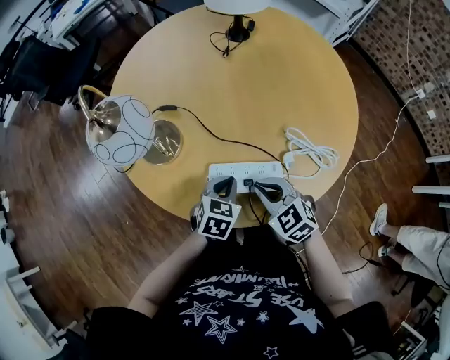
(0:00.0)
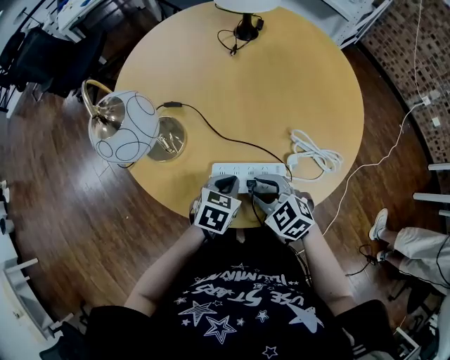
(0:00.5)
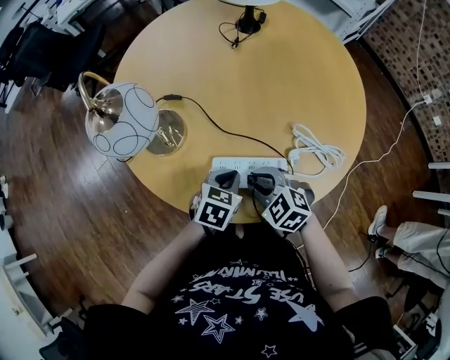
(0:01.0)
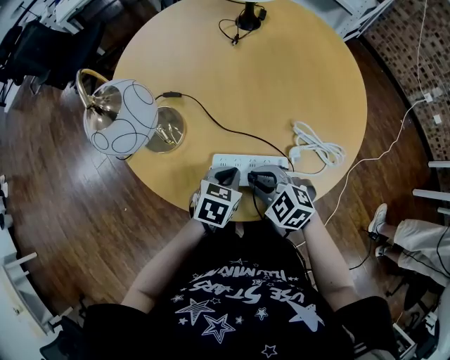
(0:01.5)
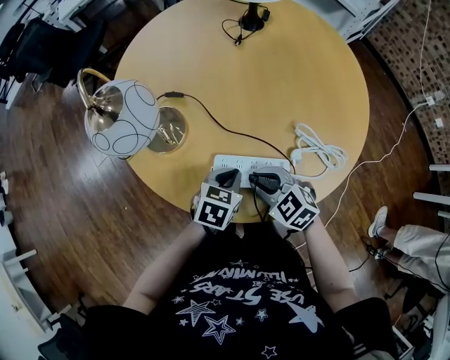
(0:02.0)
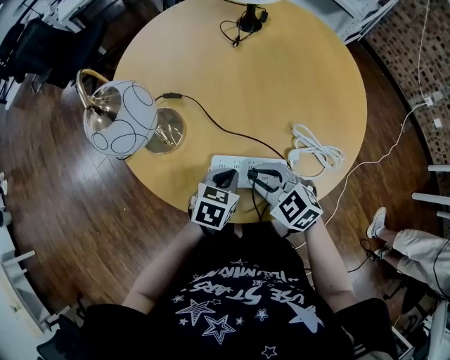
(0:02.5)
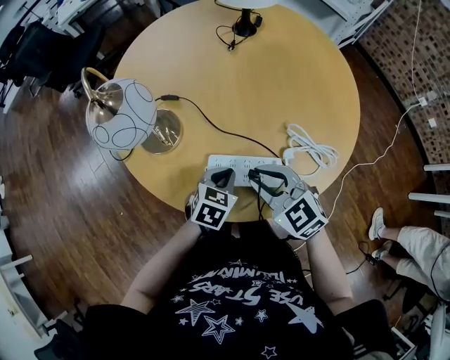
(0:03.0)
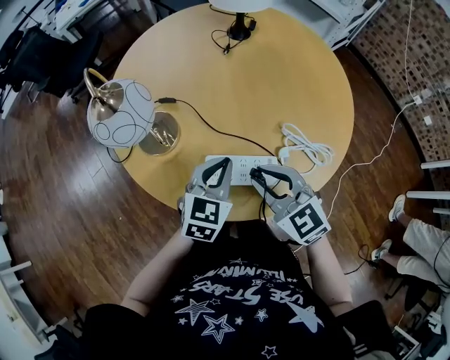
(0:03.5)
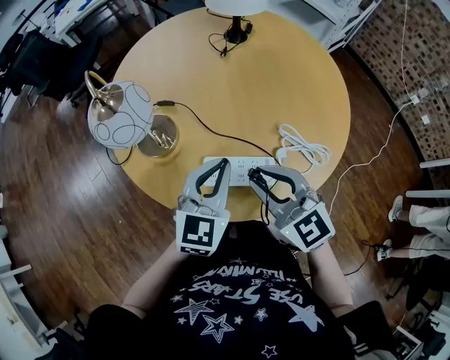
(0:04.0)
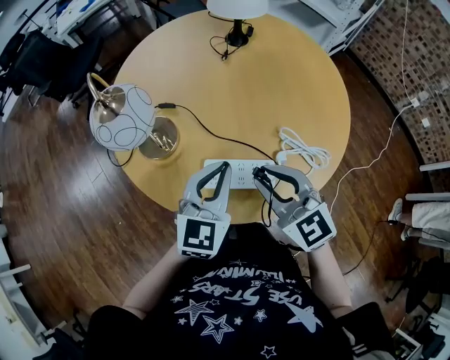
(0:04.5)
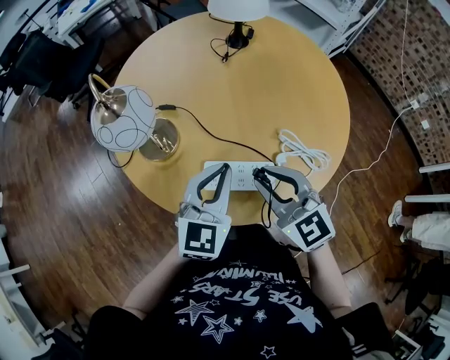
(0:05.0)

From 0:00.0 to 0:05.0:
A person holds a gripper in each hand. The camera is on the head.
From 0:00.0 to 0:02.5: The grippers stay close to where they were, moving slightly.
From 0:02.5 to 0:05.0: Both grippers move upward, approximately 15 cm. The right gripper changes its angle by about 20 degrees. Meanwhile the left gripper tilts its fingers some 30 degrees upward.

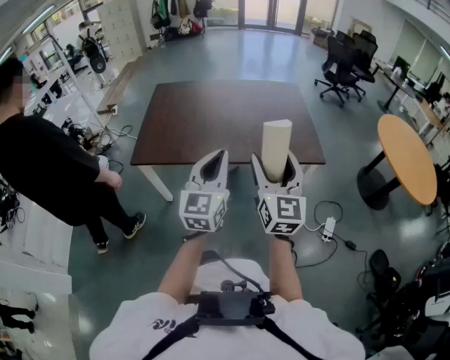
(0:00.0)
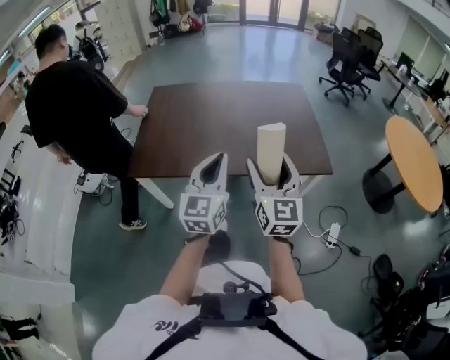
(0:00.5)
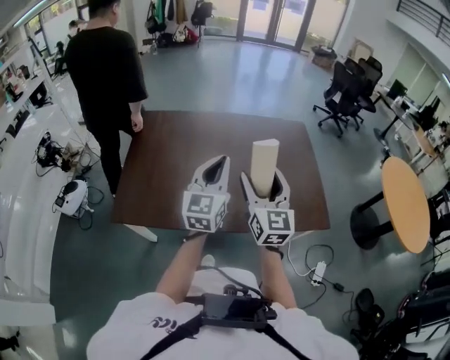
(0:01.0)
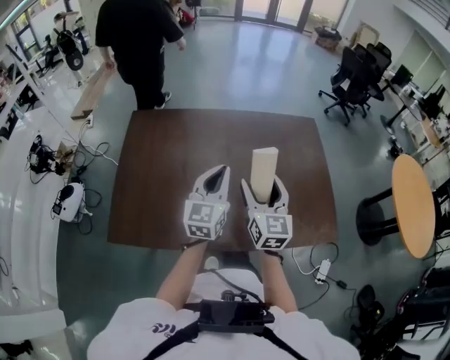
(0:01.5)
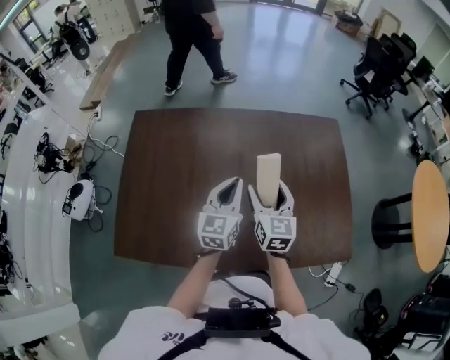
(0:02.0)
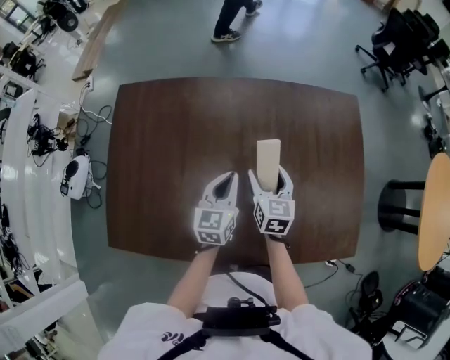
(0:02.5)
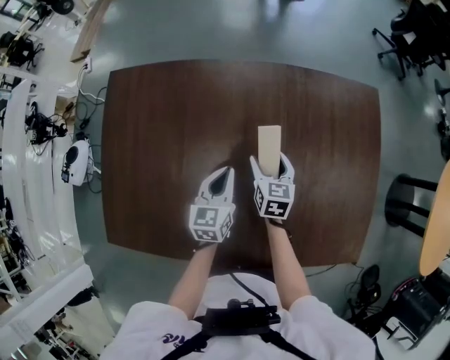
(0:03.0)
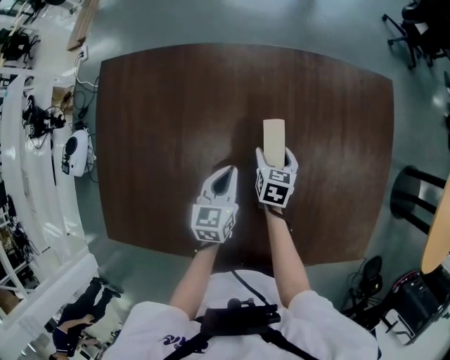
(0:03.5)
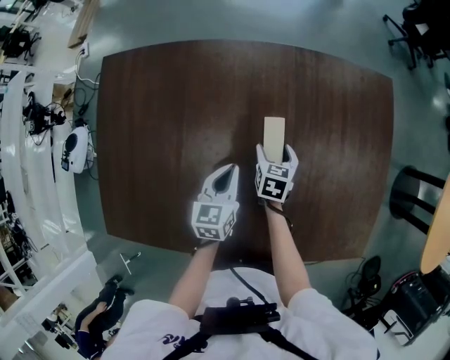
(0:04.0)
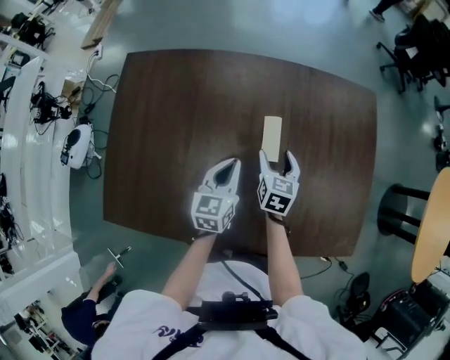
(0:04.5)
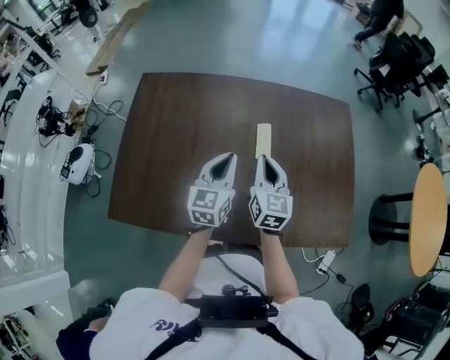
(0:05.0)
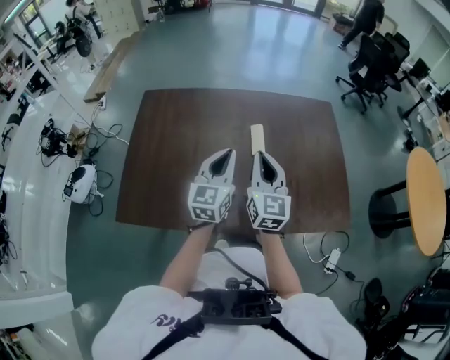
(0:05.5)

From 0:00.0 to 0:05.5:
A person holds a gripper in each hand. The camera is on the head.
From 0:00.0 to 0:02.0: Both grippers are carried forward, approximately 40 cm. The grippers both shift downward by about 20 cm. The right gripper swivels roughly 20 degrees.
From 0:02.0 to 0:03.5: The grippers both shift downward and forward by about 35 cm. The right gripper angles its fingers downward, by some 40 degrees; the left gripper rotates approximately 30 degrees.
From 0:03.5 to 0:05.5: Both grippers move upward and backward, about 50 cm. The right gripper angles its fingers upward, by approximately 50 degrees, and closes up. The left gripper swivels approximately 30 degrees.

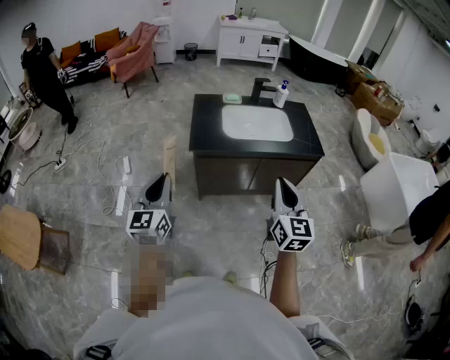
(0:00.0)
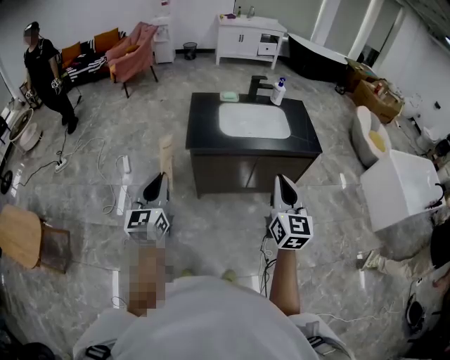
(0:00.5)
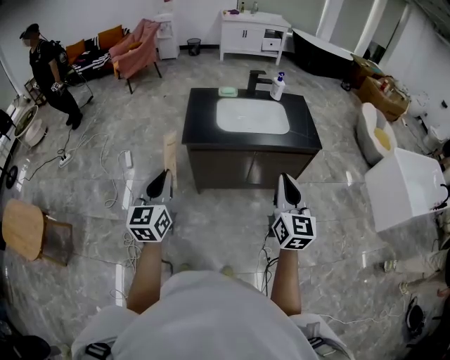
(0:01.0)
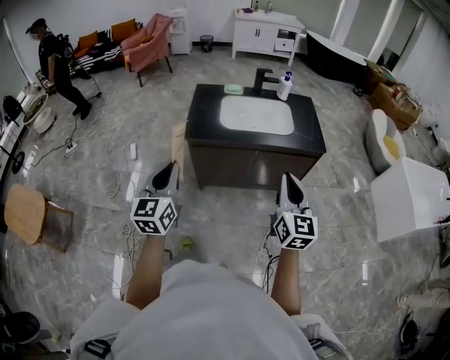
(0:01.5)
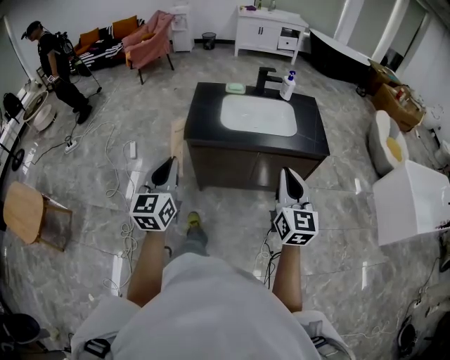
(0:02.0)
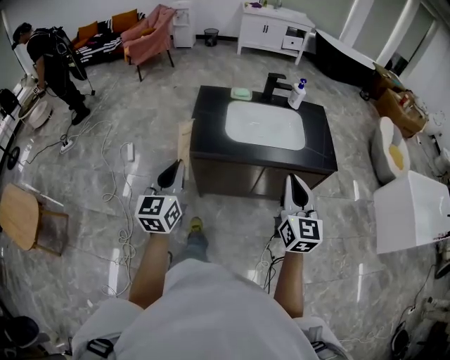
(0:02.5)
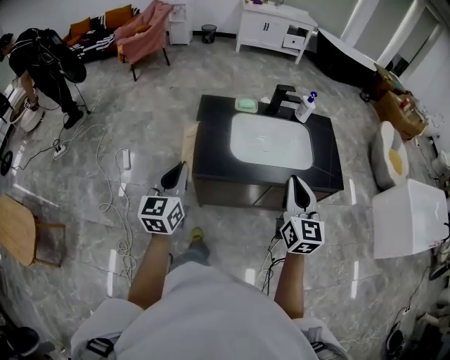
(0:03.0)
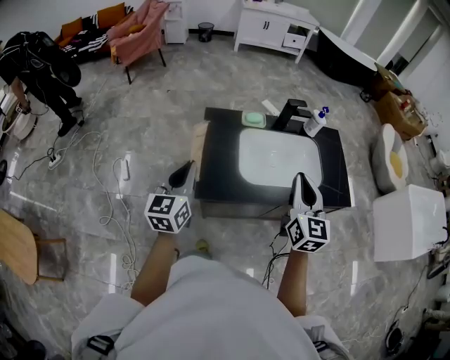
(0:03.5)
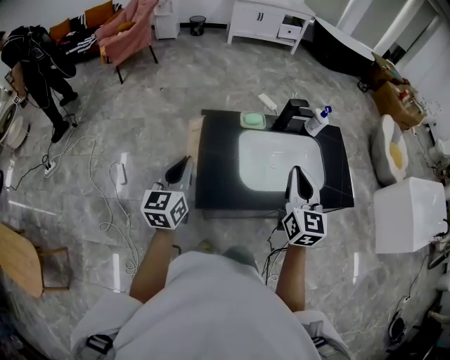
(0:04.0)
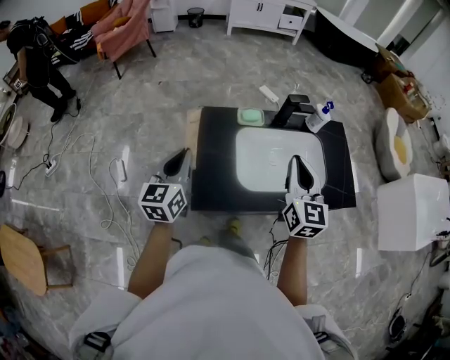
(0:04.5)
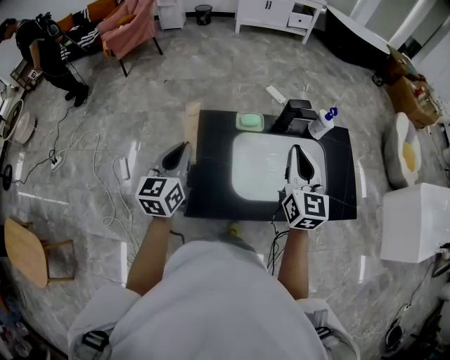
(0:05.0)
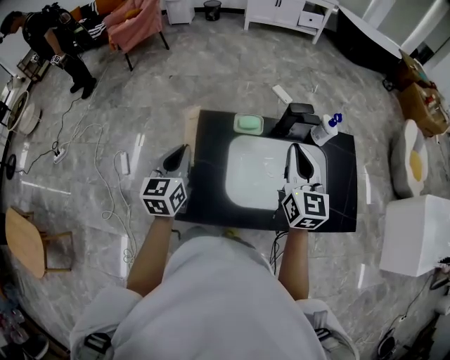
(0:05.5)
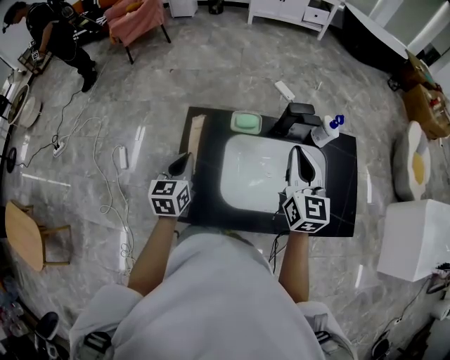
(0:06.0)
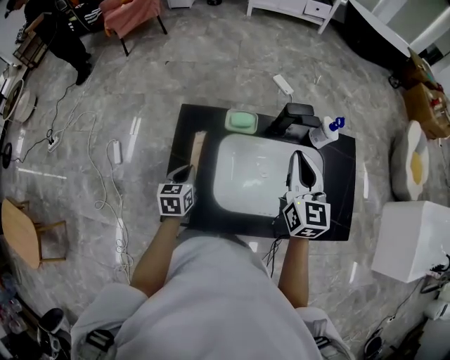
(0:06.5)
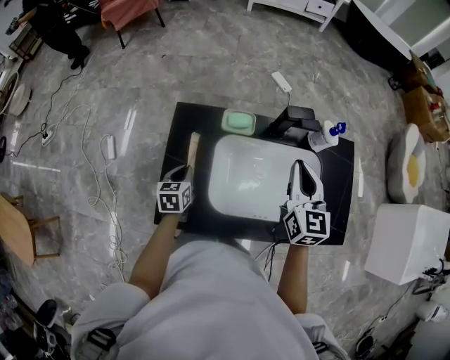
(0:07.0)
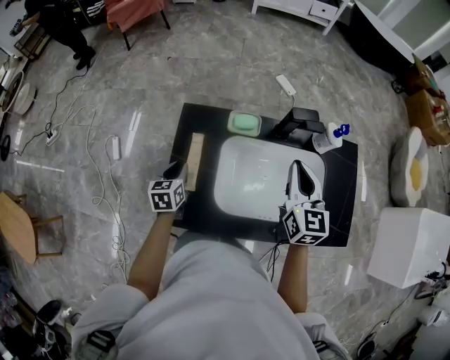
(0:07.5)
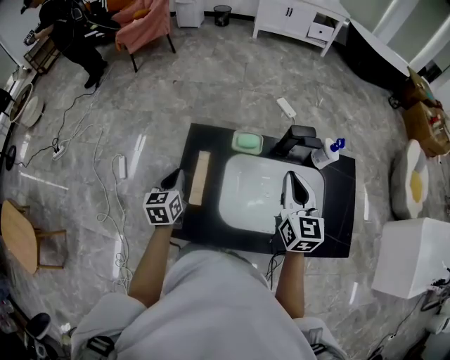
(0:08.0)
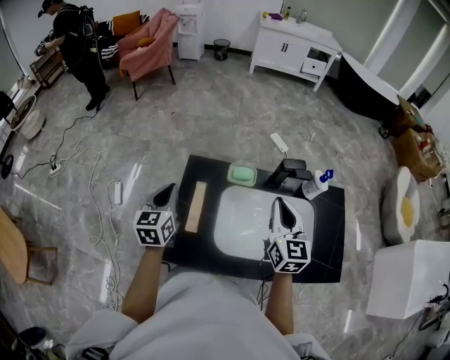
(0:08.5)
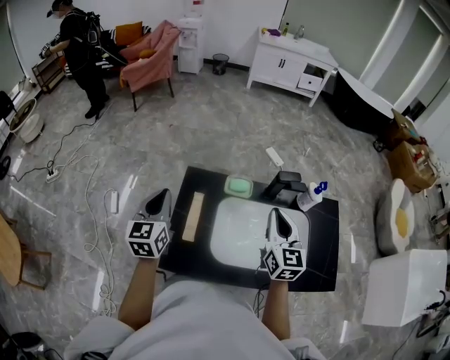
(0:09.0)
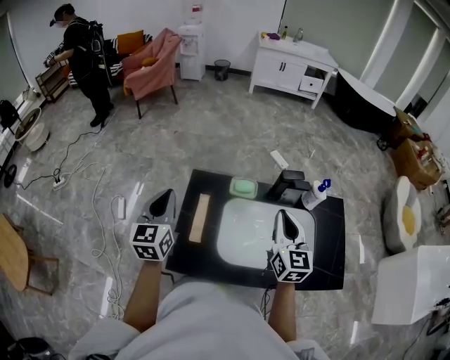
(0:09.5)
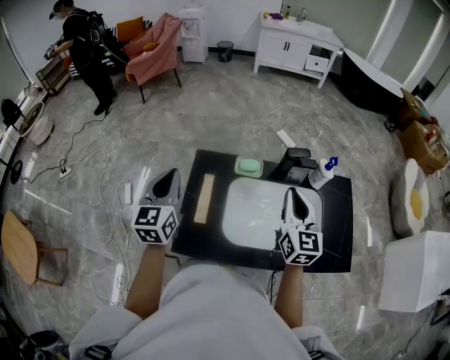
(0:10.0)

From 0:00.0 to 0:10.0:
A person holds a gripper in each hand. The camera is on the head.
From 0:00.0 to 0:02.0: The right gripper goes some 15 cm to the right and forward. The left gripper shifts roughly 15 cm to the right.
From 0:02.0 to 0:04.0: The pair of grippers is taken forward, approximately 50 cm.
From 0:04.0 to 0:06.0: The right gripper heads forward and to the right, covering about 20 cm. Meanwhile the left gripper shifts about 20 cm forward, downward and to the right.
From 0:06.0 to 0:08.0: The left gripper travels downward and back again, about 15 cm each way.
From 0:08.0 to 0:10.0: The right gripper moves about 5 cm, while the left gripper moves upward, approximately 20 cm, and rotates approximately 20 degrees.

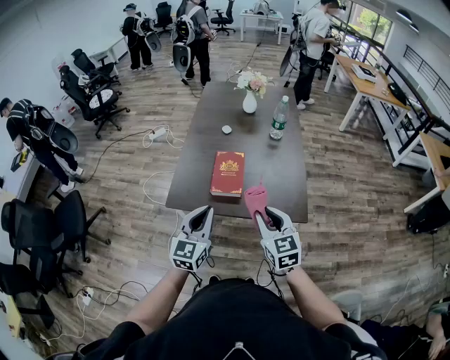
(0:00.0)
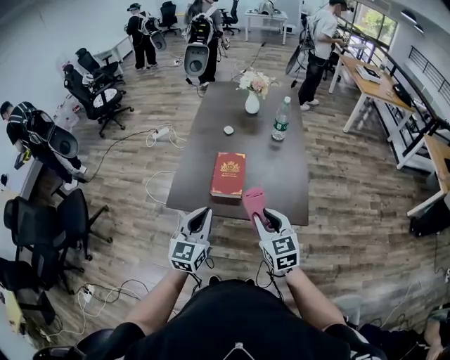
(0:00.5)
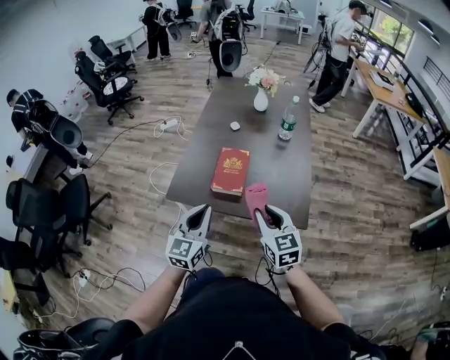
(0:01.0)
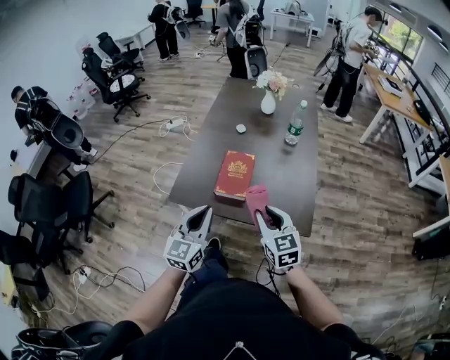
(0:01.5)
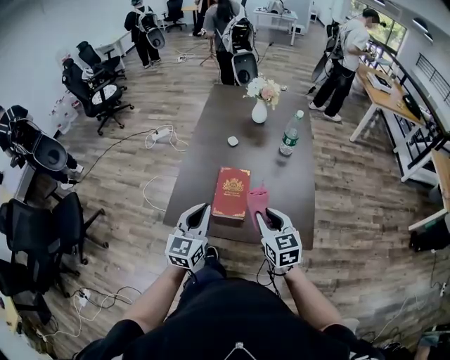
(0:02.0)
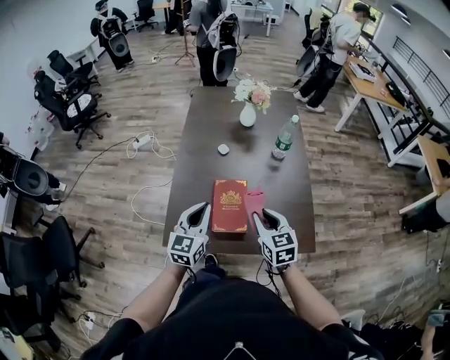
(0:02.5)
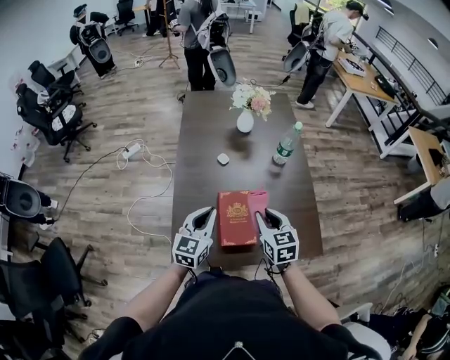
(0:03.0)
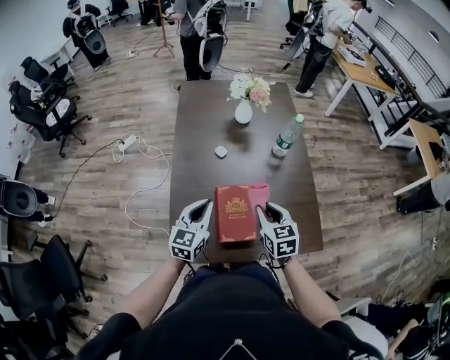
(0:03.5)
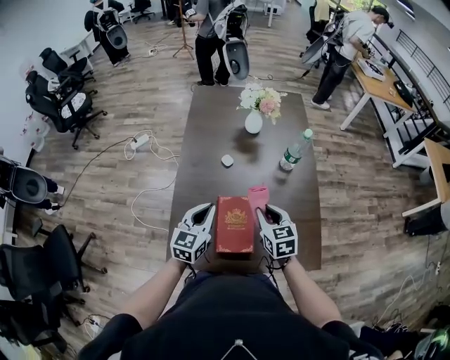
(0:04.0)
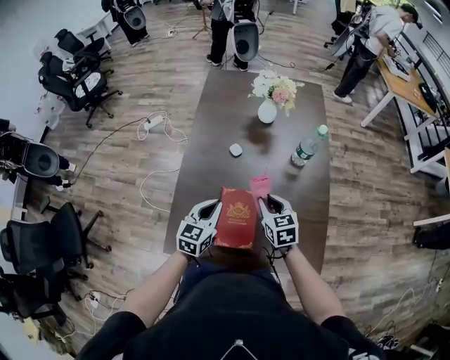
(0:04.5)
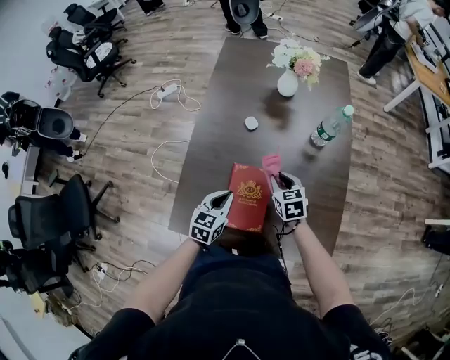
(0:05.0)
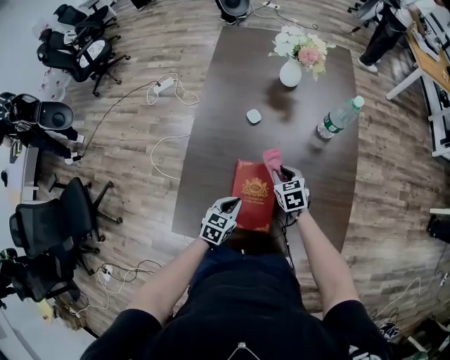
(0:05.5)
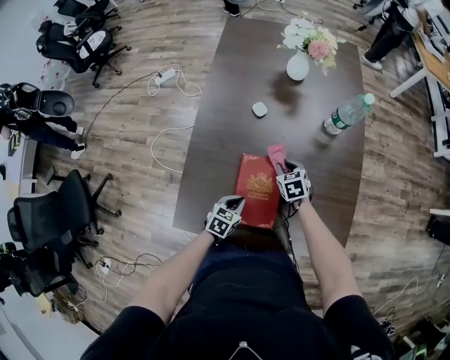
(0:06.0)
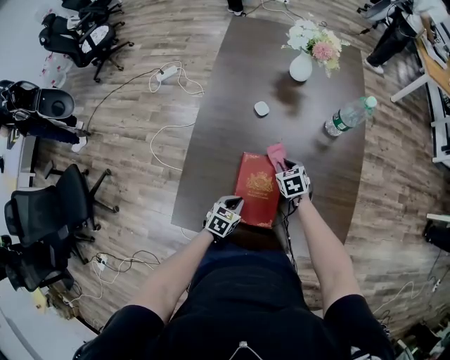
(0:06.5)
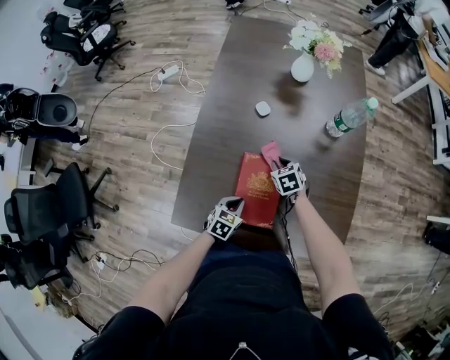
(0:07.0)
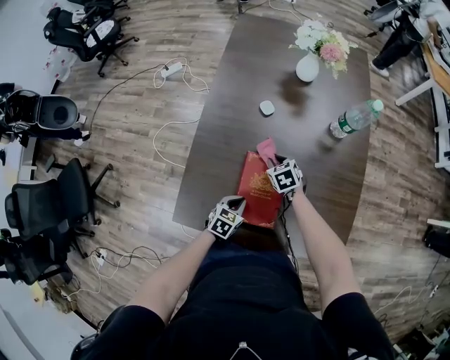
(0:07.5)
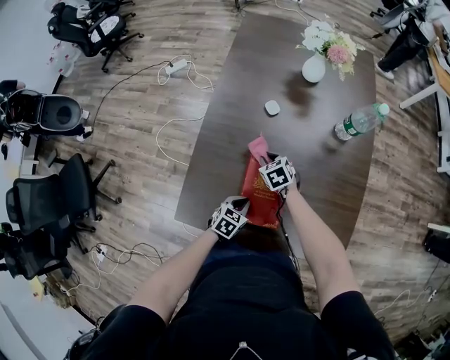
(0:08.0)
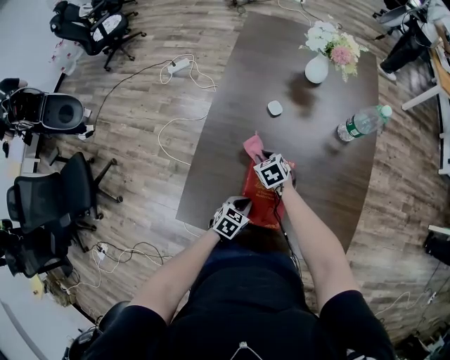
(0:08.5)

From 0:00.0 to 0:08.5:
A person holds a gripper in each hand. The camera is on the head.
From 0:00.0 to 0:02.0: The two grippers go approximately 15 cm forward.
From 0:02.0 to 0:04.0: Both grippers move forward, about 20 cm.
From 0:04.0 to 0:06.5: The grippers both shift downward by approximately 25 cm. The left gripper tilts its fingers roughly 30 degrees downward, while the right gripper turns by approximately 30 degrees.
From 0:06.5 to 0:08.5: The right gripper is displaced to the left by about 15 cm.
